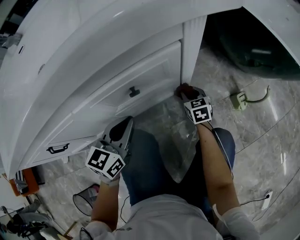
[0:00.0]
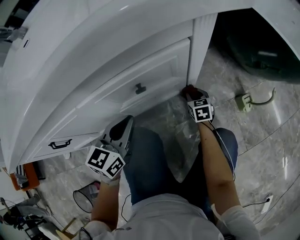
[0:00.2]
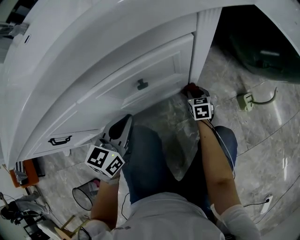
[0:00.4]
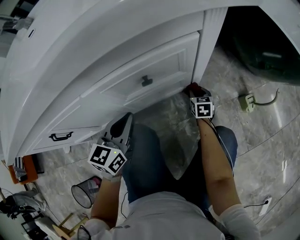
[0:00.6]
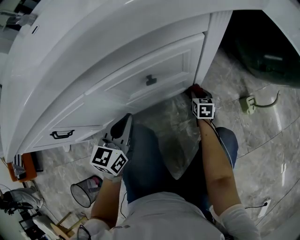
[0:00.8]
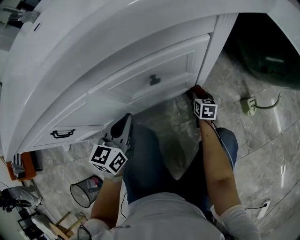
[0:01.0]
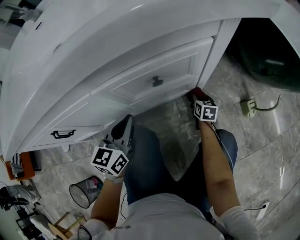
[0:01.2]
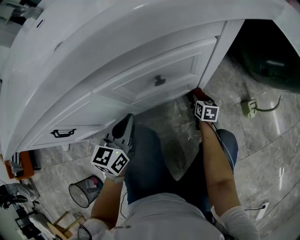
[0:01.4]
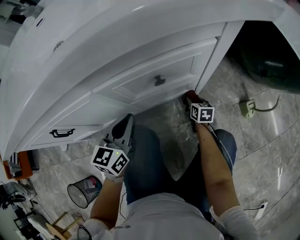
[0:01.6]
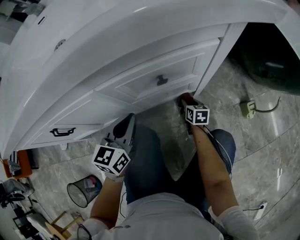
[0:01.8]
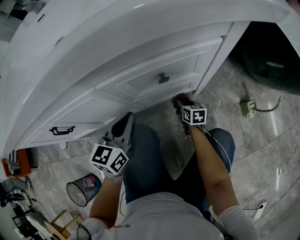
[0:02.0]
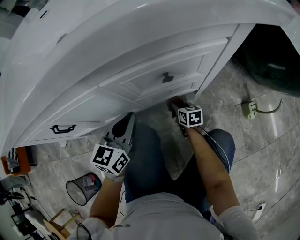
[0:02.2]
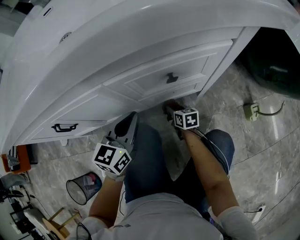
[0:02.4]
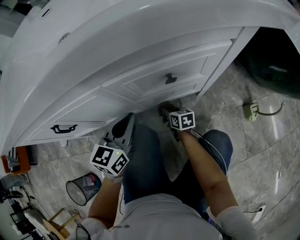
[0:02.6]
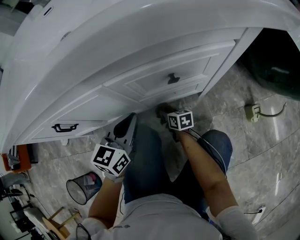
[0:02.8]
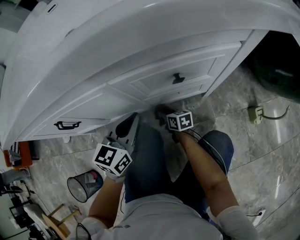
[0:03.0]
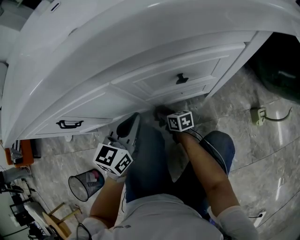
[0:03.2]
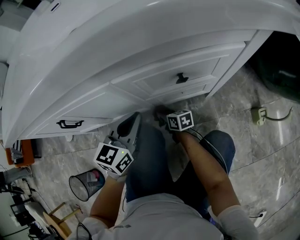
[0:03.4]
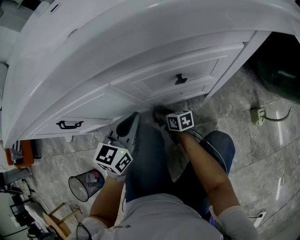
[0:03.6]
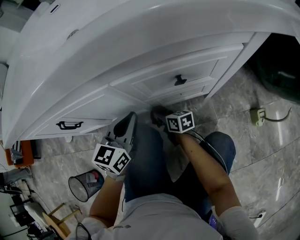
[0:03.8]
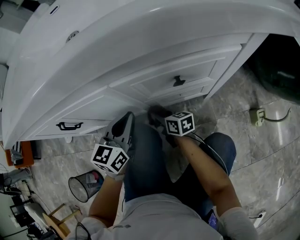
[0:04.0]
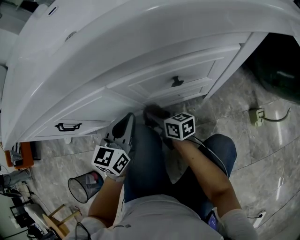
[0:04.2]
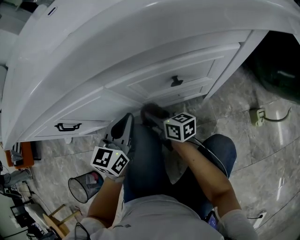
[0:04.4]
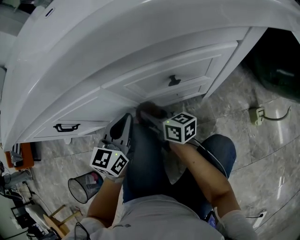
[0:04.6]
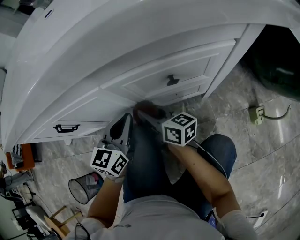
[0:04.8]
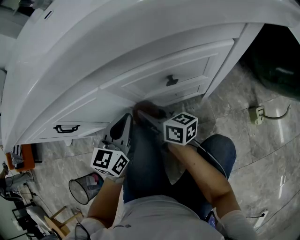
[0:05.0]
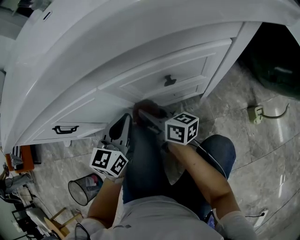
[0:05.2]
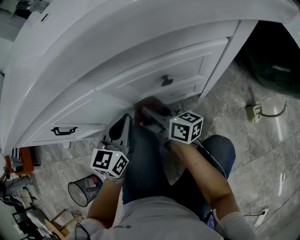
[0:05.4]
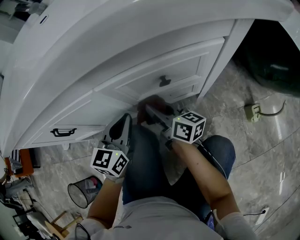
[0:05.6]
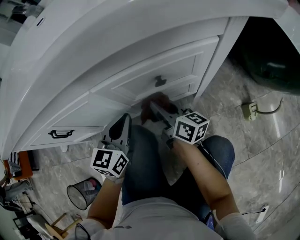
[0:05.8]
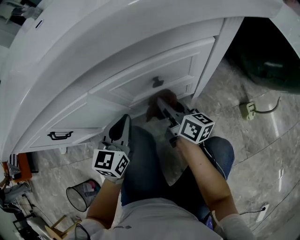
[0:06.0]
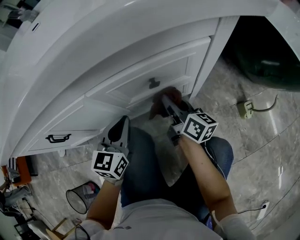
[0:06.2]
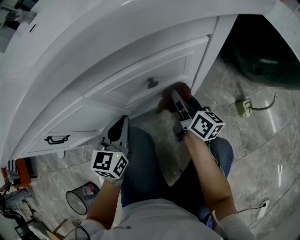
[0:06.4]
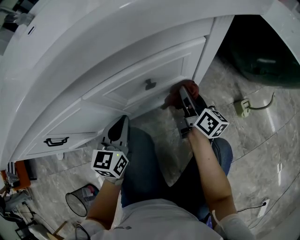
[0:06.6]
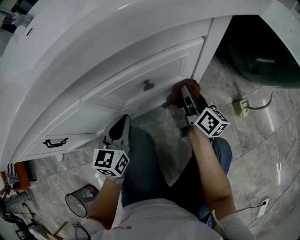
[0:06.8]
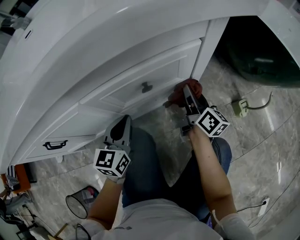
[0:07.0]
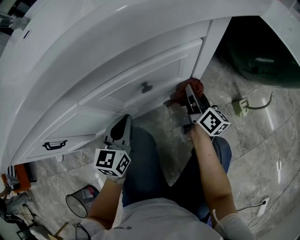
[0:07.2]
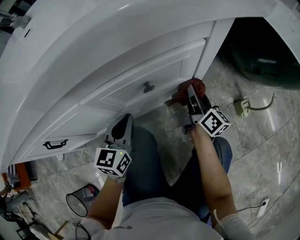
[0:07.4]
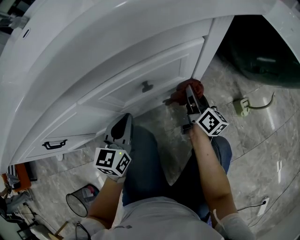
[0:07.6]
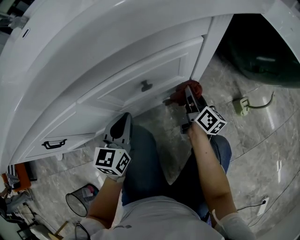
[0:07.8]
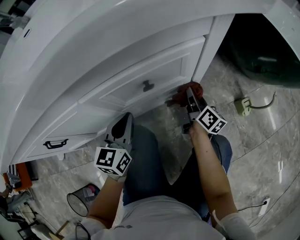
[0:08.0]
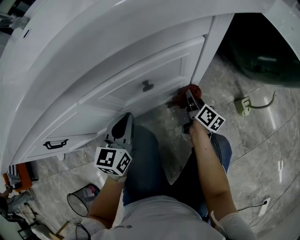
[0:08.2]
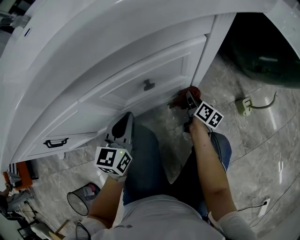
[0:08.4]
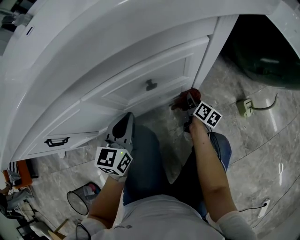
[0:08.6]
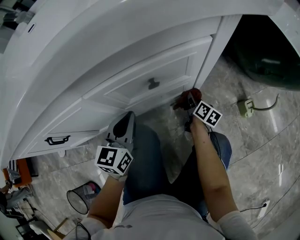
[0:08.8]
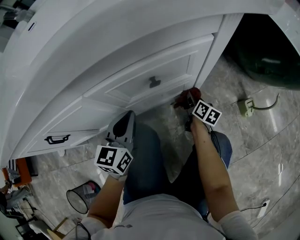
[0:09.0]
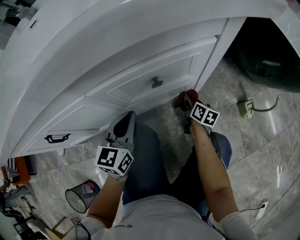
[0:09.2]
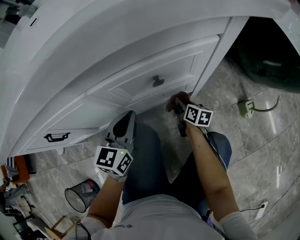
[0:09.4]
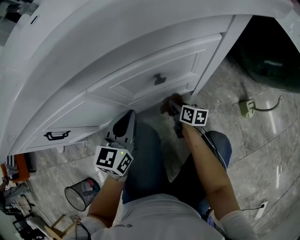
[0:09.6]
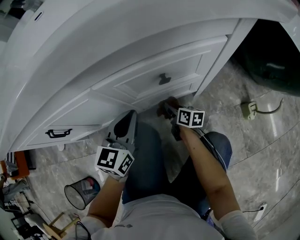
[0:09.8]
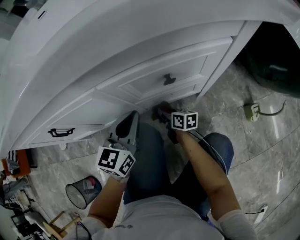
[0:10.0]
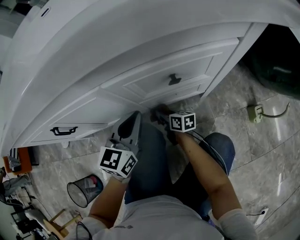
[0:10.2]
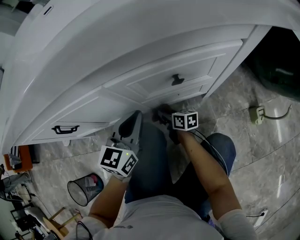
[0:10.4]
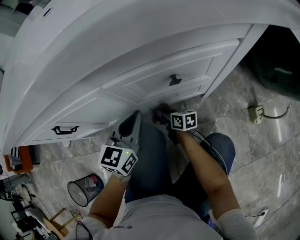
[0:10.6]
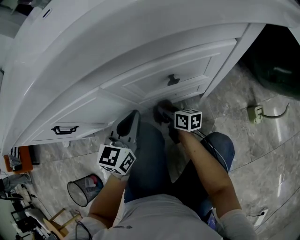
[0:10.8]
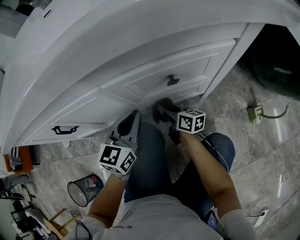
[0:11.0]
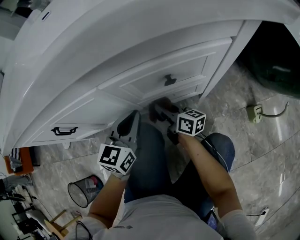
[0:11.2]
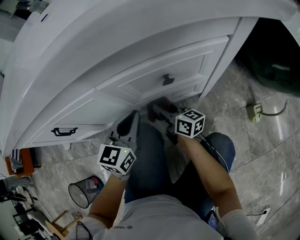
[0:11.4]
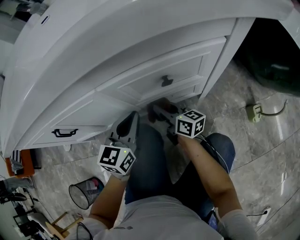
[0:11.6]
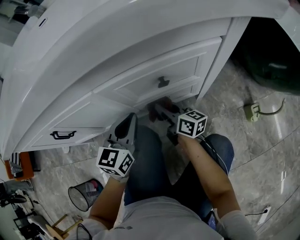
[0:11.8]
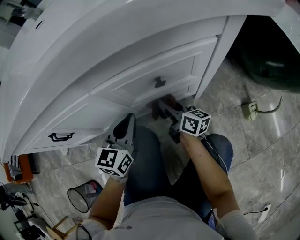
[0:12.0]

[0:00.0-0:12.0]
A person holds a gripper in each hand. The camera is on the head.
0:00.0 to 0:01.6: The right gripper shifts about 10 cm downward, while the left gripper is displaced to the left by roughly 5 cm.
0:01.6 to 0:03.0: The right gripper travels to the left by about 20 cm, and changes its angle by about 30 degrees.
0:03.0 to 0:04.4: The right gripper goes roughly 15 cm upward, and swivels roughly 20 degrees.
0:04.4 to 0:06.0: The right gripper shifts approximately 15 cm to the right and upward, and turns by some 30 degrees.
0:06.0 to 0:07.6: The right gripper moves to the right, some 15 cm, and turns by approximately 20 degrees.
0:07.6 to 0:09.0: The right gripper travels downward by roughly 15 cm, and swivels roughly 30 degrees.
0:09.0 to 0:10.4: The right gripper heads to the left, covering roughly 25 cm, and swivels some 40 degrees.
0:10.4 to 0:12.0: The right gripper moves upward and to the right, approximately 15 cm, and changes its angle by roughly 20 degrees.

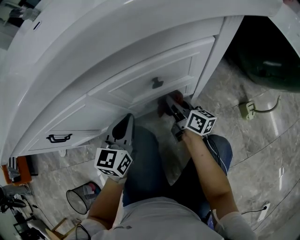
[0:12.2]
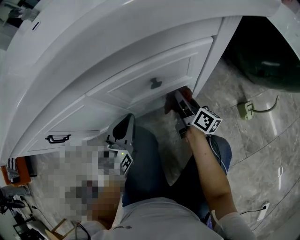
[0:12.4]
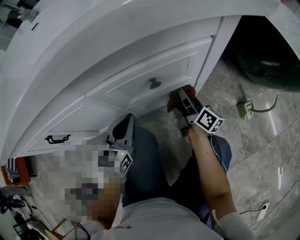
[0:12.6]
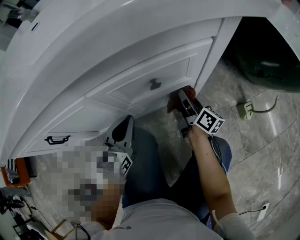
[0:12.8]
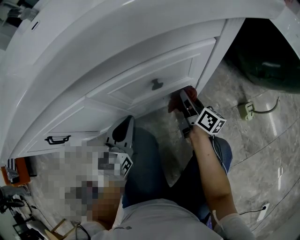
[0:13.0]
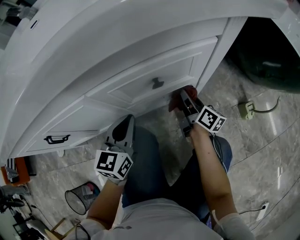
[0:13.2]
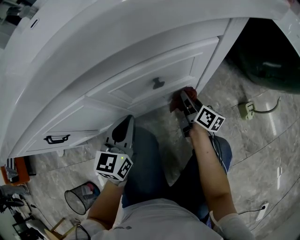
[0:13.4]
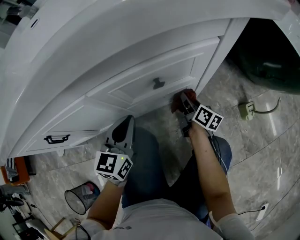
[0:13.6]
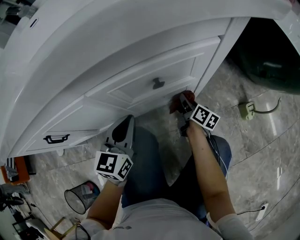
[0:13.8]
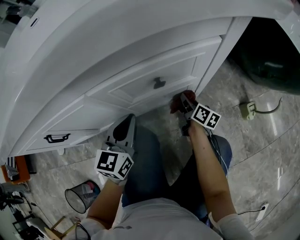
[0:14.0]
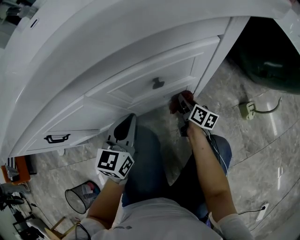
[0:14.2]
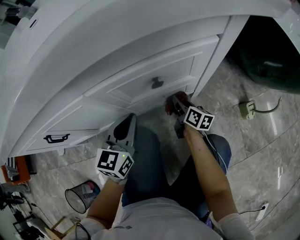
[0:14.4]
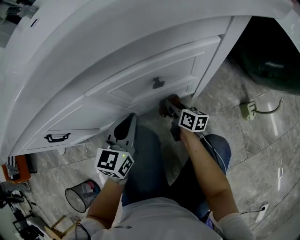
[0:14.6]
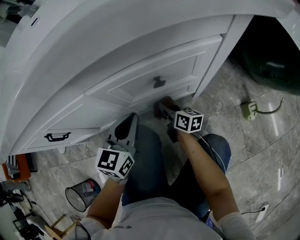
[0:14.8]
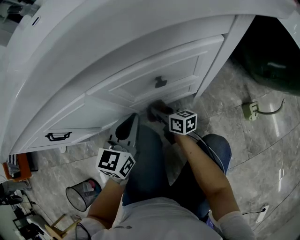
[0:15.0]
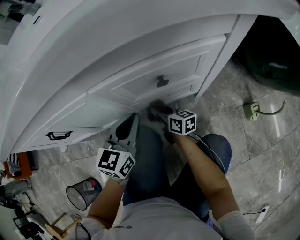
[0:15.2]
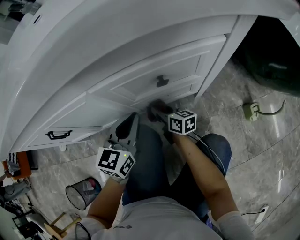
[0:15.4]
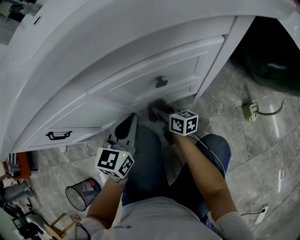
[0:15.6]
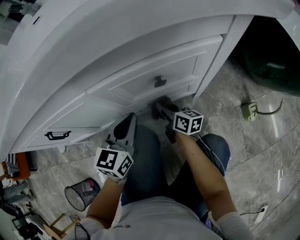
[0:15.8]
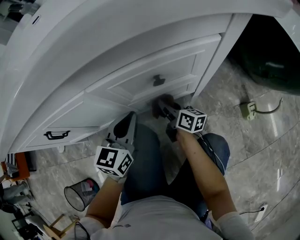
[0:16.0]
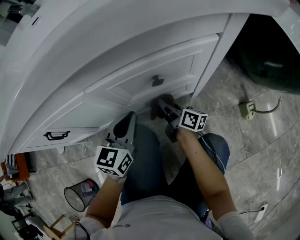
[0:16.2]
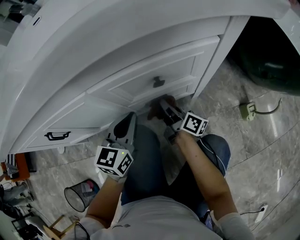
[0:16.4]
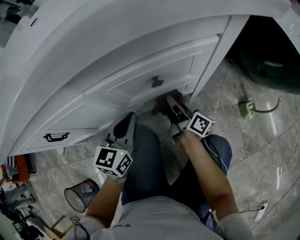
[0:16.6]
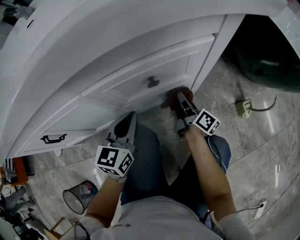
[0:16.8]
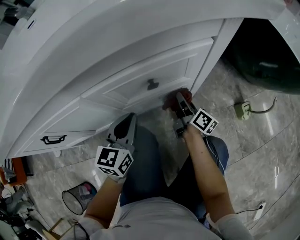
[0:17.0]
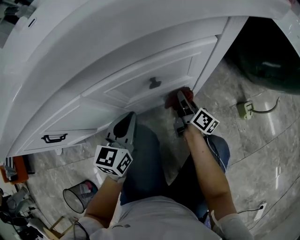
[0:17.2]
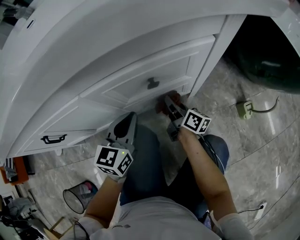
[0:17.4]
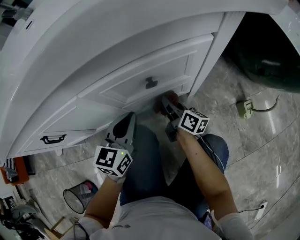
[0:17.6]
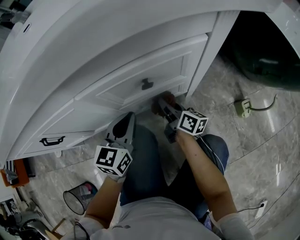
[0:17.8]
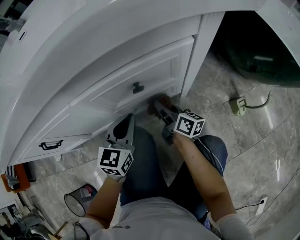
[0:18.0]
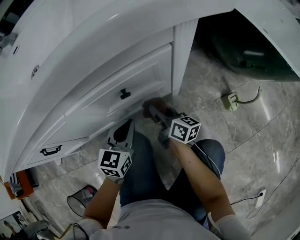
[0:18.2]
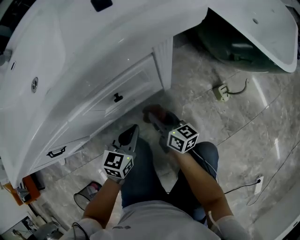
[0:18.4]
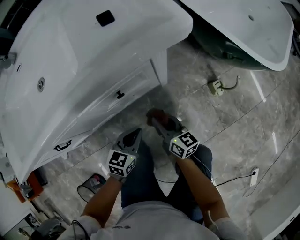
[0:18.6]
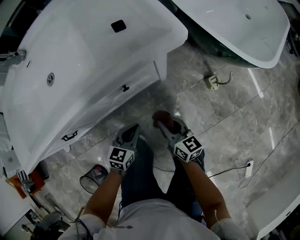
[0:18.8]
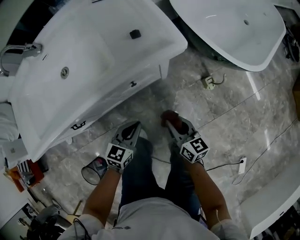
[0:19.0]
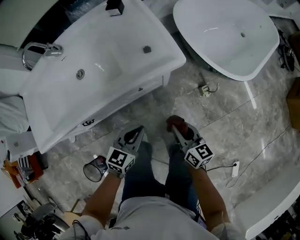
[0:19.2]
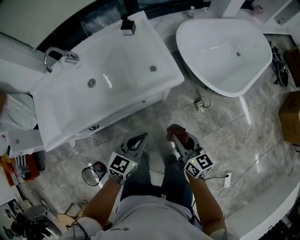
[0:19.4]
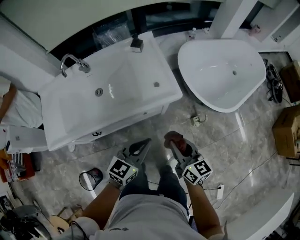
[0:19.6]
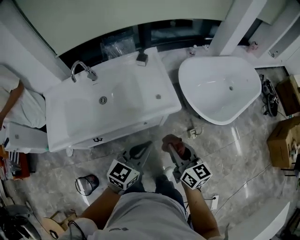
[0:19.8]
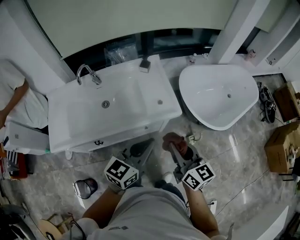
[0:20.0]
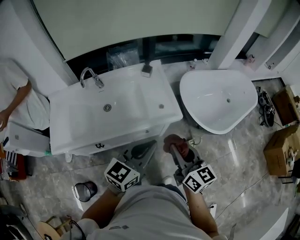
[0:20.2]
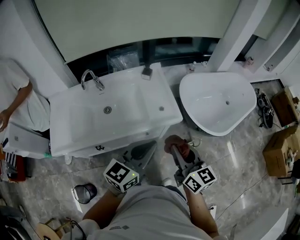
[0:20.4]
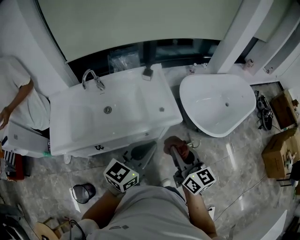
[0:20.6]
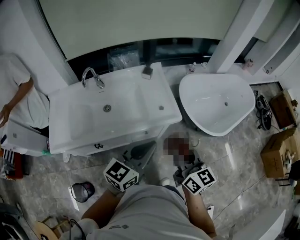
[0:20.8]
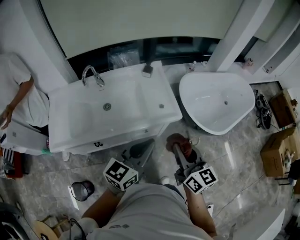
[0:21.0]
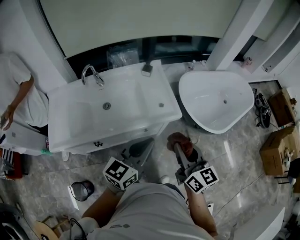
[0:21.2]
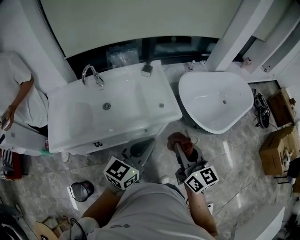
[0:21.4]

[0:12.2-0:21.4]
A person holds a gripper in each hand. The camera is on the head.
0:12.2 to 0:13.8: The right gripper heads downward and to the right, covering some 10 cm, and swivels some 20 degrees.
0:13.8 to 0:15.2: The right gripper heads to the left, covering approximately 15 cm, and rotates about 30 degrees.
0:15.2 to 0:16.8: The right gripper travels to the right by approximately 15 cm, and turns by about 40 degrees.
0:16.8 to 0:18.4: The right gripper goes approximately 10 cm upward and backward, and changes its angle by roughly 30 degrees, while the left gripper moves to the right, approximately 10 cm, and turns by about 20 degrees.
0:18.4 to 0:19.8: Both grippers move upward, about 60 cm. The right gripper rotates about 20 degrees.
0:19.8 to 0:21.4: The two grippers go about 10 cm upward.

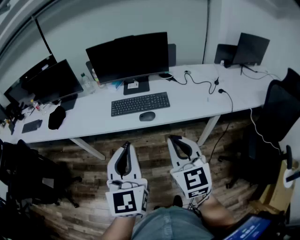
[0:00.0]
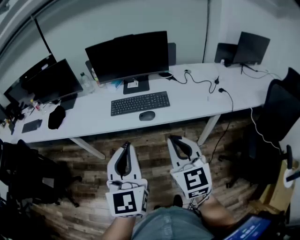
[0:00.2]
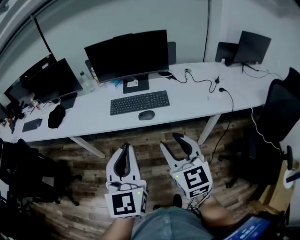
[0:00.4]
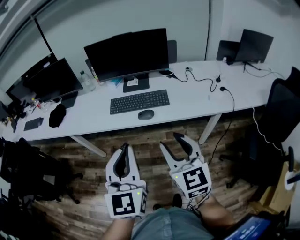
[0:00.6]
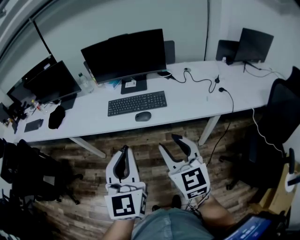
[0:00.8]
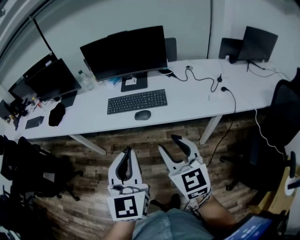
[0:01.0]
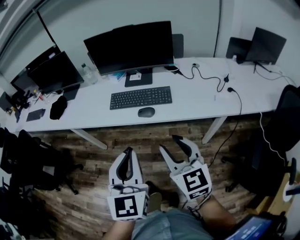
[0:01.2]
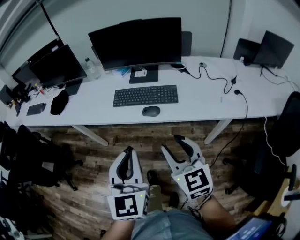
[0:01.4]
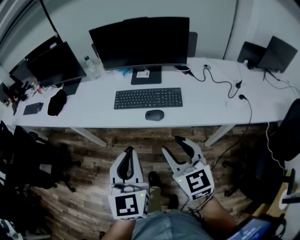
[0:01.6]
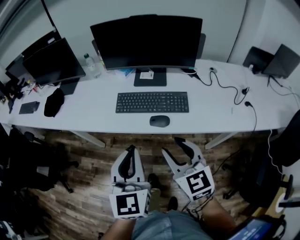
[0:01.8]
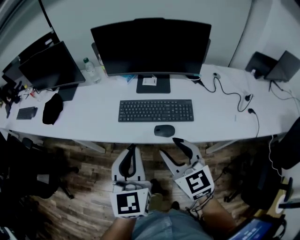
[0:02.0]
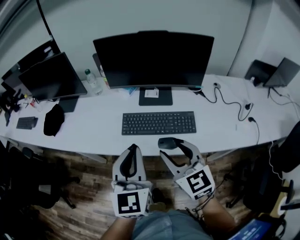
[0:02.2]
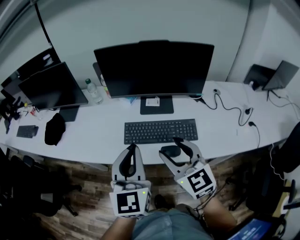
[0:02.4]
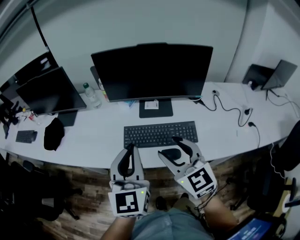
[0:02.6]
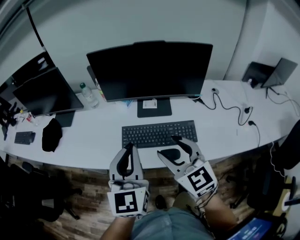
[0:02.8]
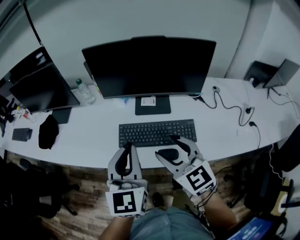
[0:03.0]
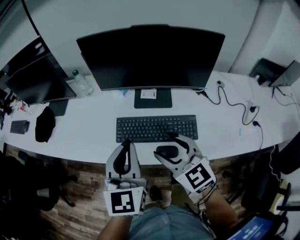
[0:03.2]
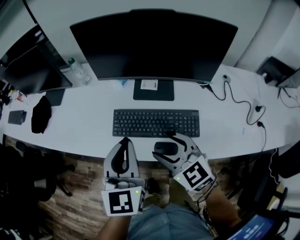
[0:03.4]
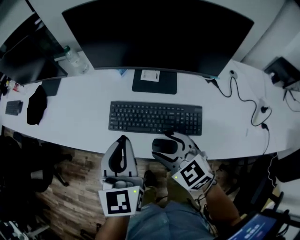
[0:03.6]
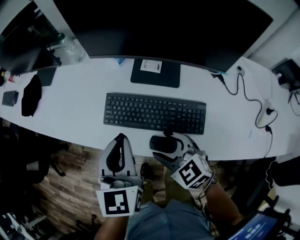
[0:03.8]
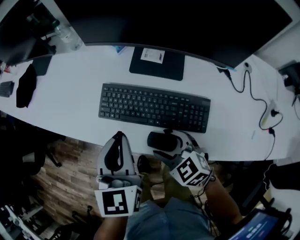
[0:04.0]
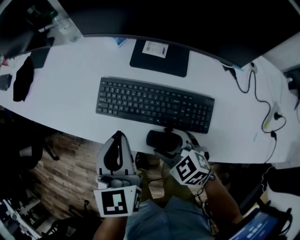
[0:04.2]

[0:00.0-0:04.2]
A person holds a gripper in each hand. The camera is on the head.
0:00.0 to 0:01.4: The right gripper heads downward and forward, covering roughly 10 cm, and opens its fingers. The left gripper heads downward, covering about 5 cm.
0:01.4 to 0:02.8: The grippers both shift forward by approximately 25 cm.
0:02.8 to 0:04.2: The left gripper moves downward, about 15 cm, and changes its angle by approximately 30 degrees. Meanwhile the right gripper moves downward, approximately 25 cm, and points its fingers roughly 30 degrees further downward.
